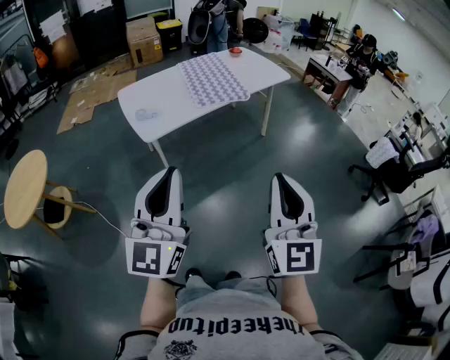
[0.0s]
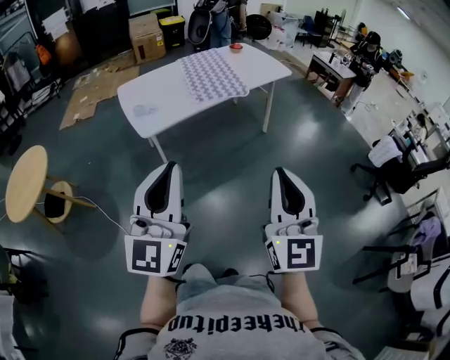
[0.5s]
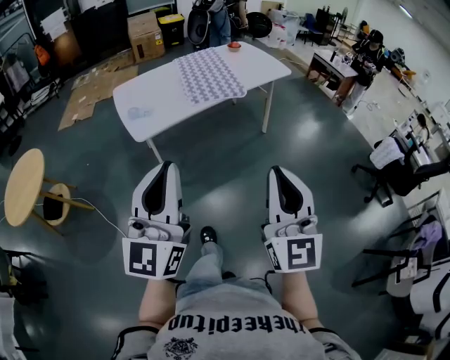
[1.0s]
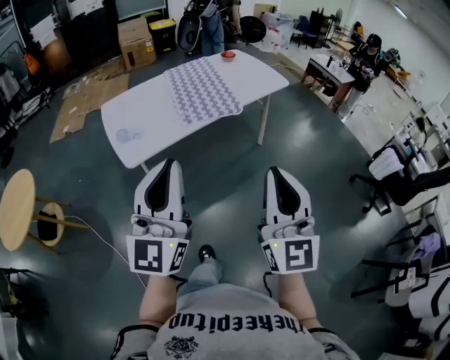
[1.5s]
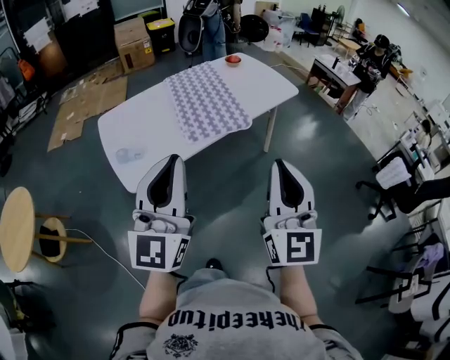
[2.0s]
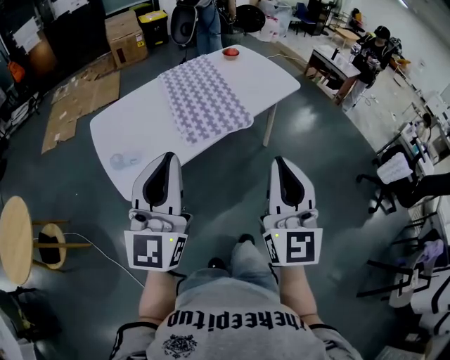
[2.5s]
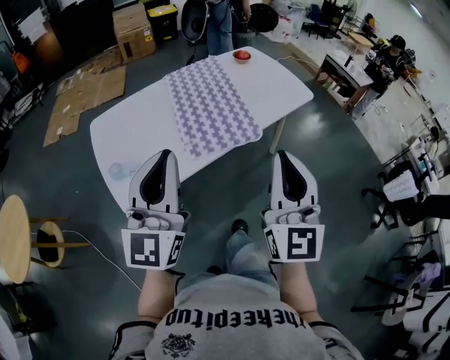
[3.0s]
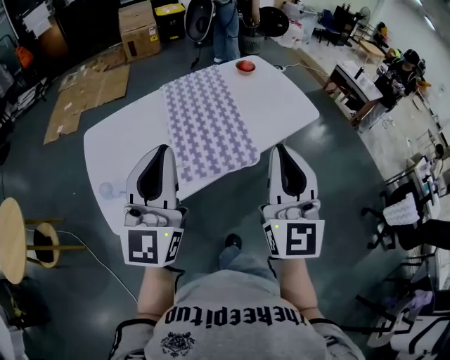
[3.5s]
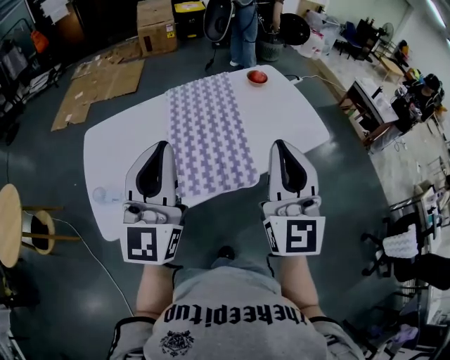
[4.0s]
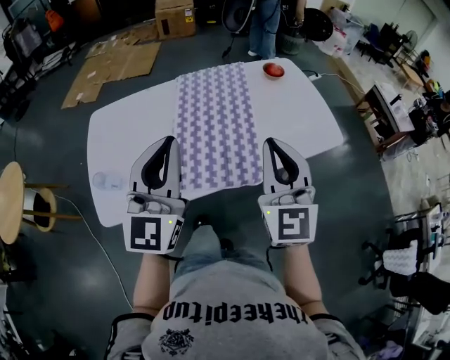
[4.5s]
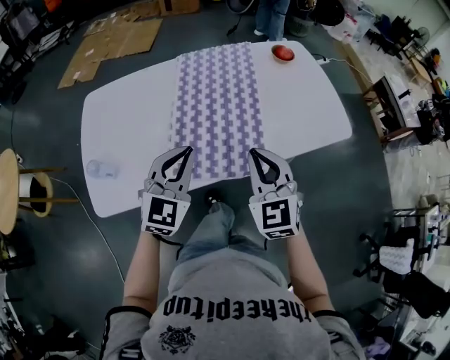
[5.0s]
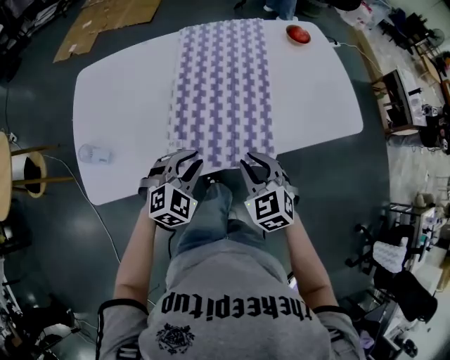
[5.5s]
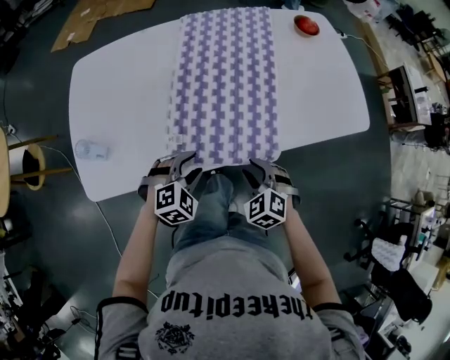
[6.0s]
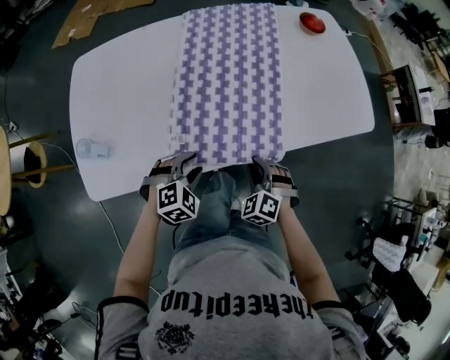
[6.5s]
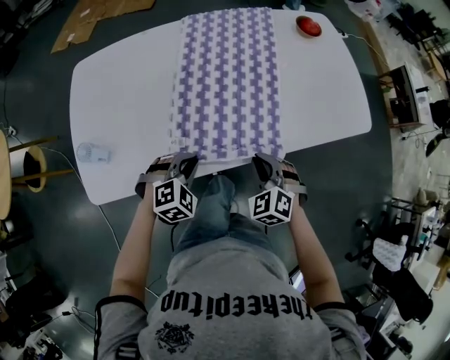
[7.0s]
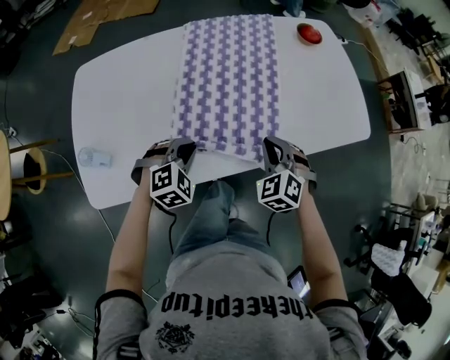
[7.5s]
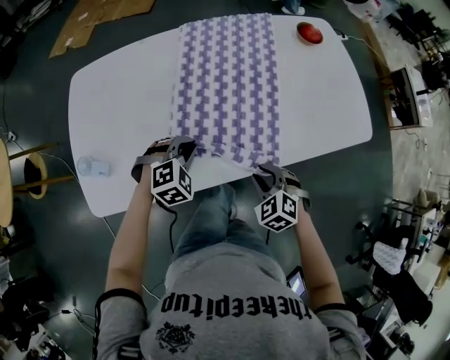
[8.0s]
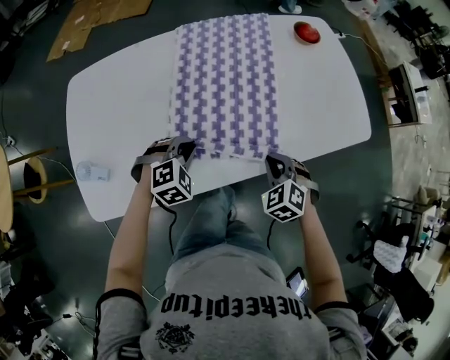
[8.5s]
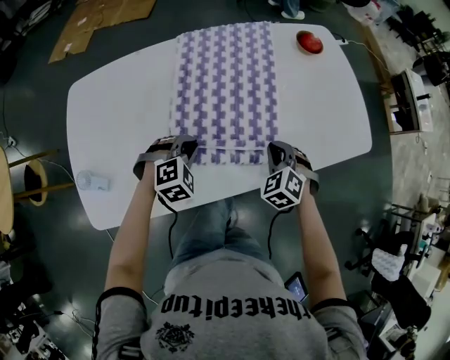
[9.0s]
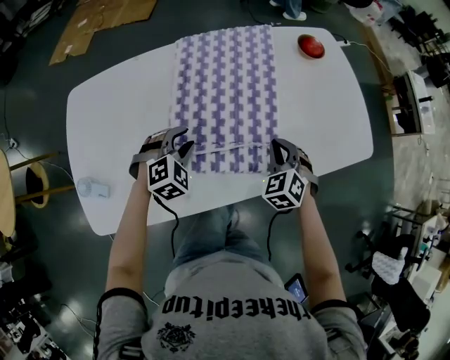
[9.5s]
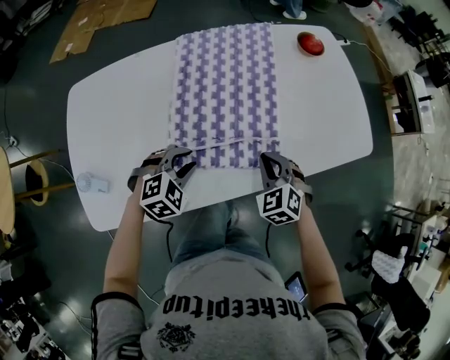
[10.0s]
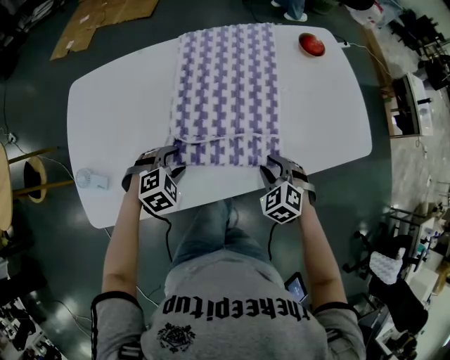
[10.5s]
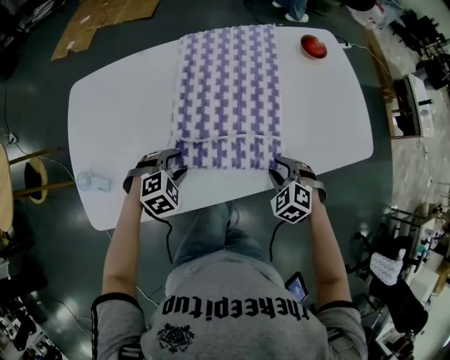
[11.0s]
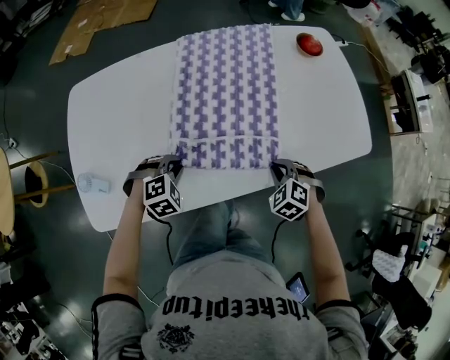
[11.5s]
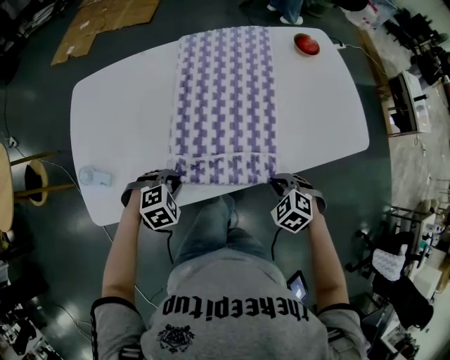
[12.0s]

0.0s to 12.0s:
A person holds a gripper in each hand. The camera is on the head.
0.0s to 2.0s: The two grippers go approximately 35 cm forward.
2.0s to 4.0s: The grippers both shift forward by roughly 40 cm.
4.0s to 6.0s: The two grippers go roughly 40 cm downward. The right gripper tips its fingers downward by approximately 70 degrees, and opens its fingers, while the left gripper points its fingers some 70 degrees further downward, and opens up.
6.0s to 8.0s: The right gripper closes, then opens again. Meanwhile the left gripper shifts about 10 cm forward, and closes up.
8.0s to 10.0s: The right gripper heads forward, covering roughly 10 cm, and closes its fingers, while the left gripper reaches some 10 cm forward, then returns, and opens its fingers.
10.0s to 12.0s: The left gripper ends up roughly 5 cm from where it was, and closes its fingers, while the right gripper ends up approximately 5 cm from where it was, swivels some 20 degrees, and opens, then closes again.

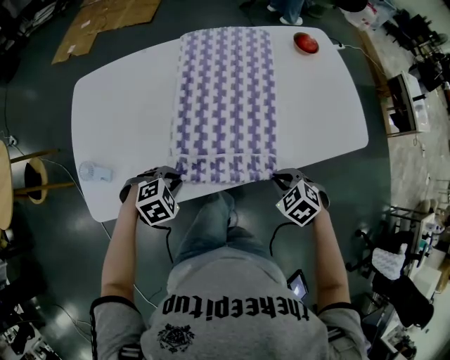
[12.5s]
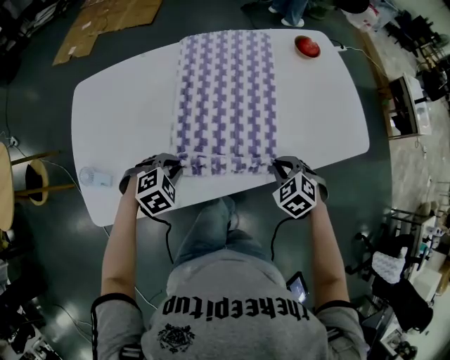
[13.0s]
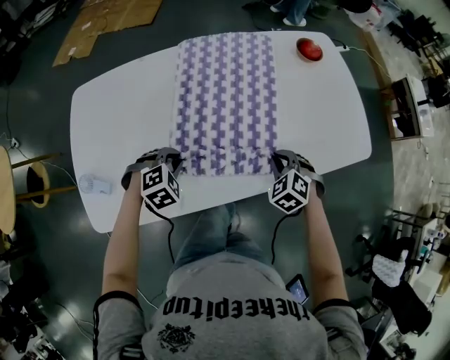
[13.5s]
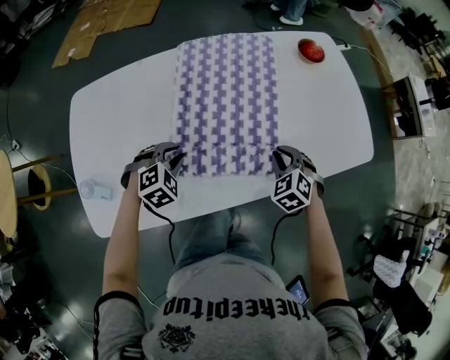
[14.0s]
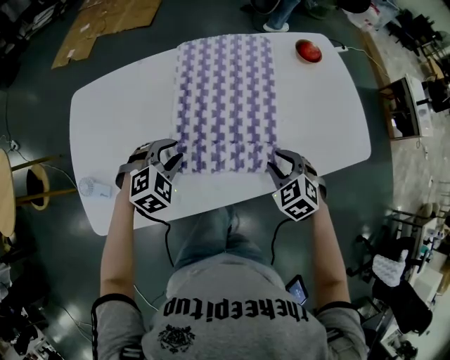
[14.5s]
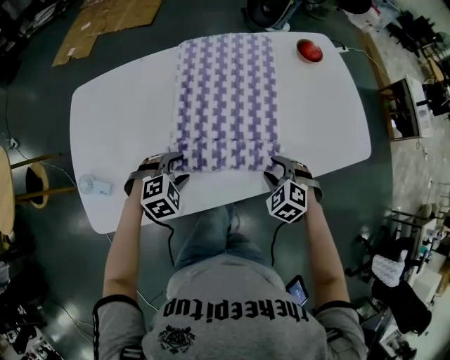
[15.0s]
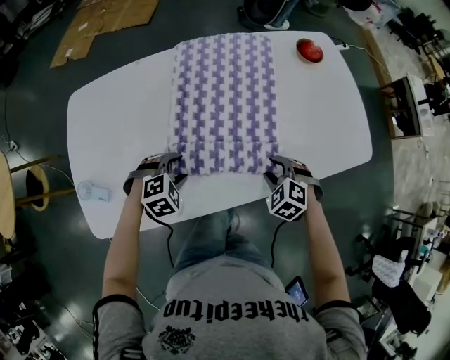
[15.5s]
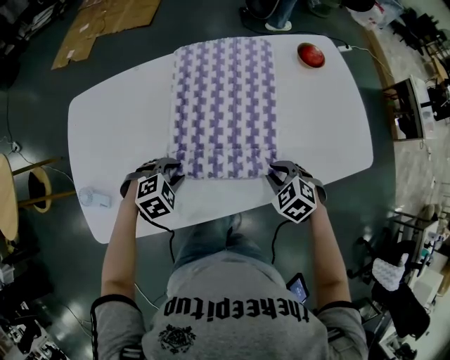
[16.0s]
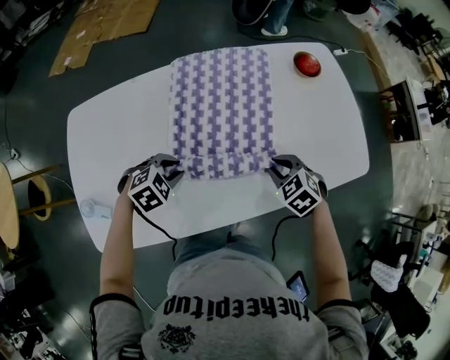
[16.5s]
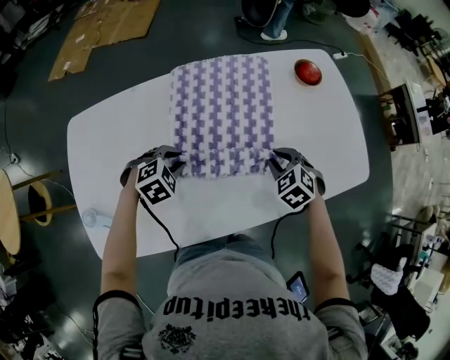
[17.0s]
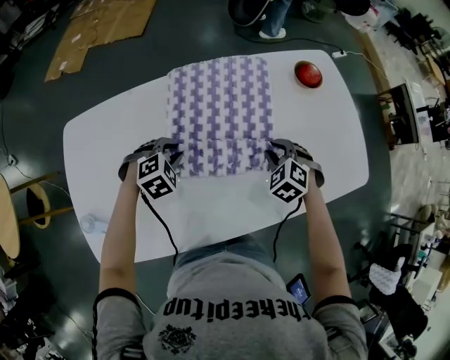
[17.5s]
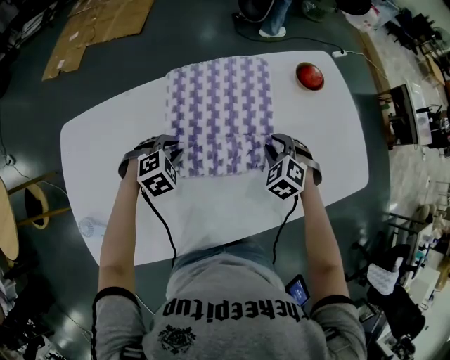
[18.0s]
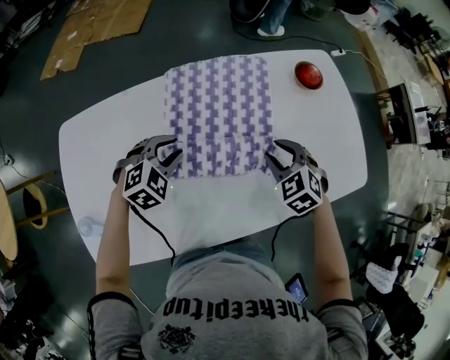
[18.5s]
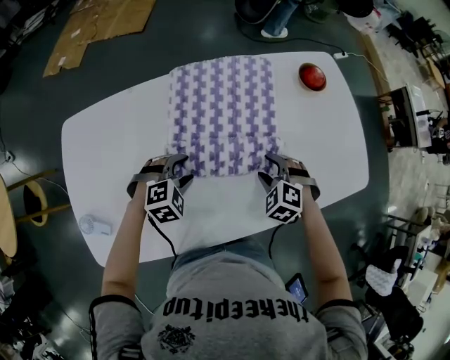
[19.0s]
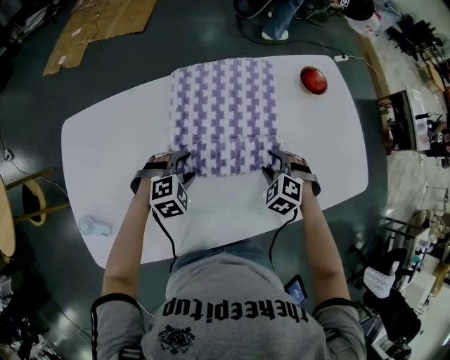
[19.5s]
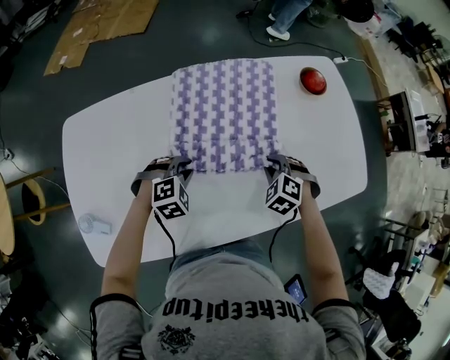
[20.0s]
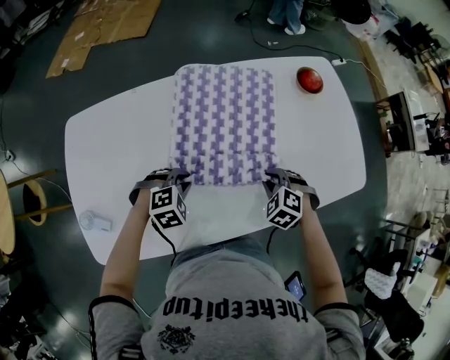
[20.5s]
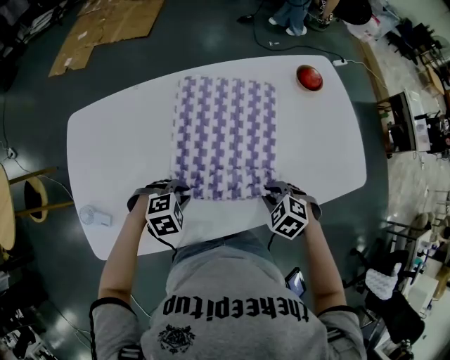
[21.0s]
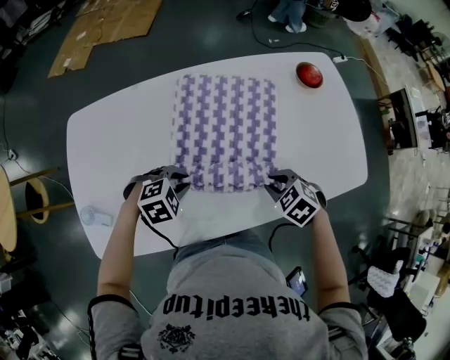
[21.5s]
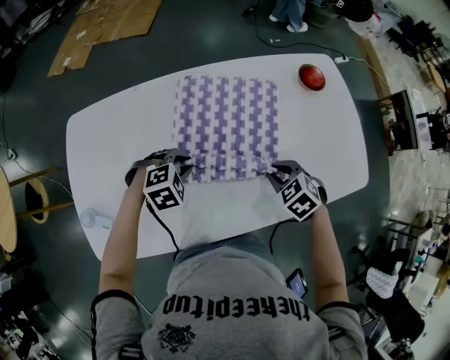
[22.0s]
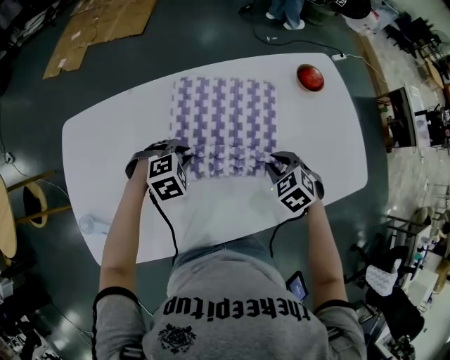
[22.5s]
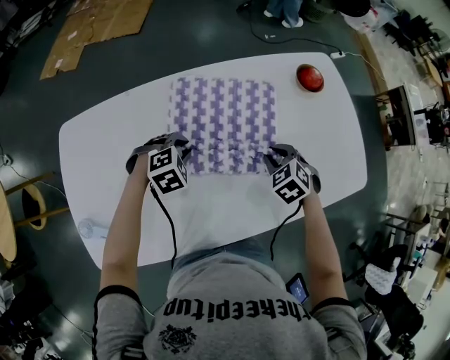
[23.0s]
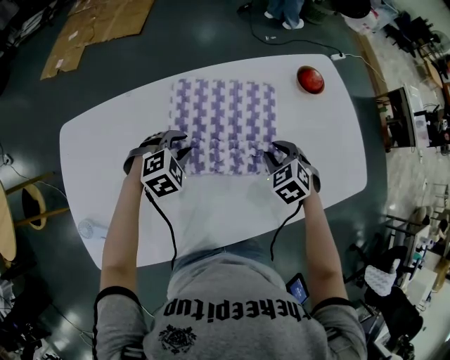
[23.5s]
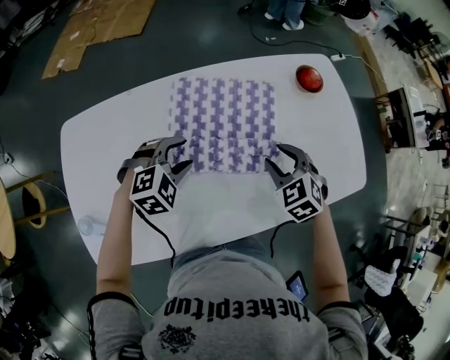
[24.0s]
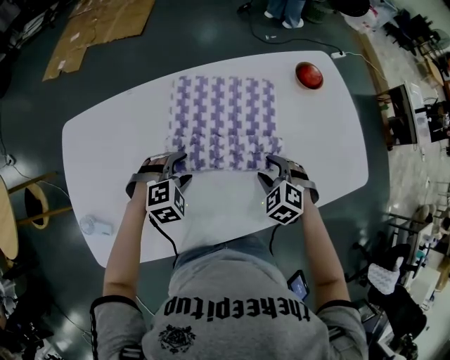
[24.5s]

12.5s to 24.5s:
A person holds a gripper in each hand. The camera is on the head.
12.5s to 14.5s: Both grippers travel together forward, approximately 15 cm. The right gripper opens its fingers. The left gripper changes its angle by roughly 20 degrees, and opens its fingers.
14.5s to 16.5s: The right gripper ends up about 5 cm from where it was. Meanwhile the left gripper opens, then closes again.
16.5s to 18.5s: Both grippers travel together forward, about 10 cm.
18.5s to 20.5s: The two grippers go approximately 10 cm backward and downward. The left gripper opens and closes again.
20.5s to 22.5s: Both grippers travel together forward, some 5 cm.
22.5s to 24.5s: The left gripper opens; the right gripper opens.

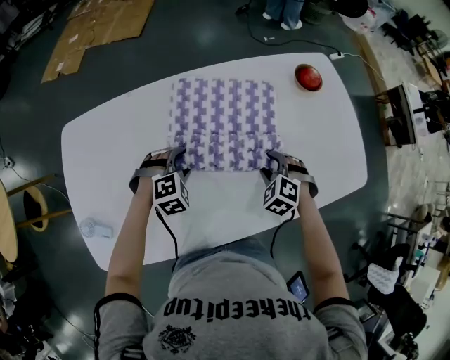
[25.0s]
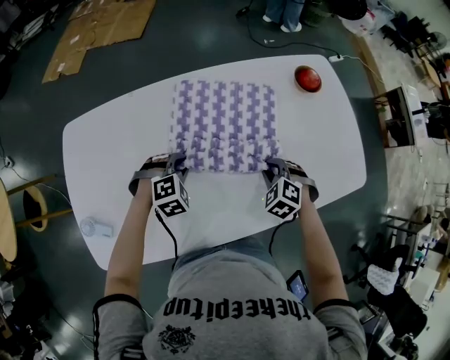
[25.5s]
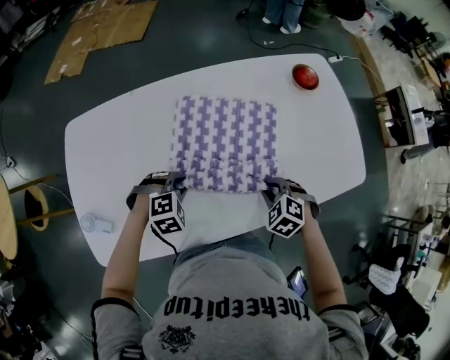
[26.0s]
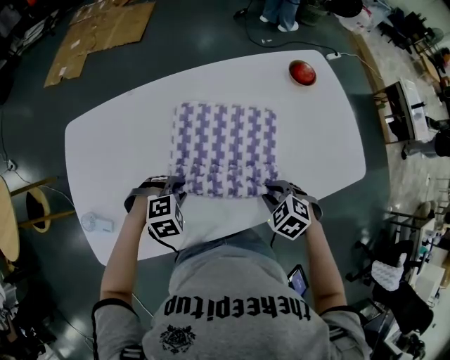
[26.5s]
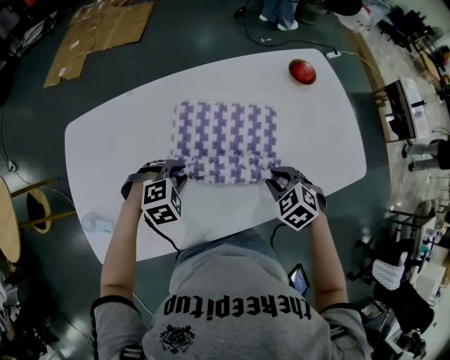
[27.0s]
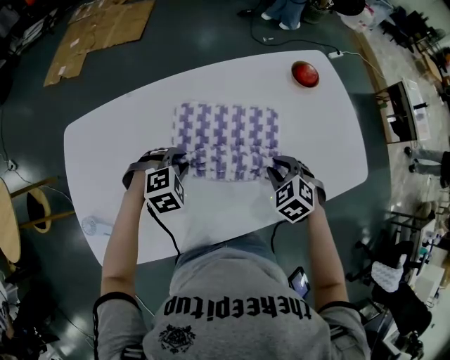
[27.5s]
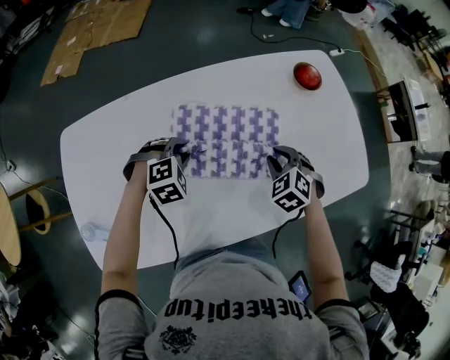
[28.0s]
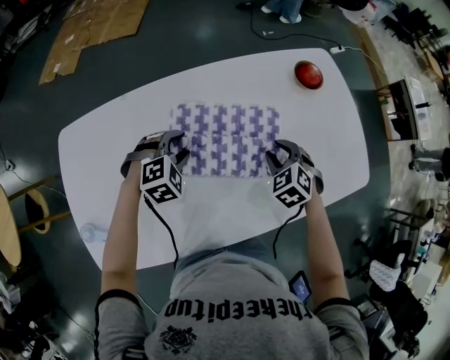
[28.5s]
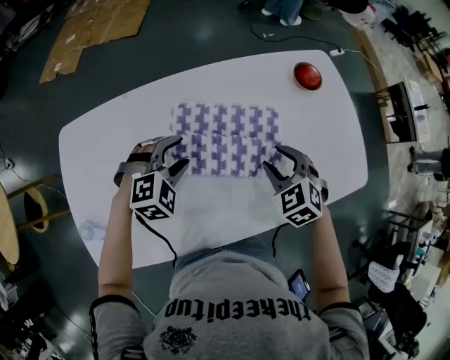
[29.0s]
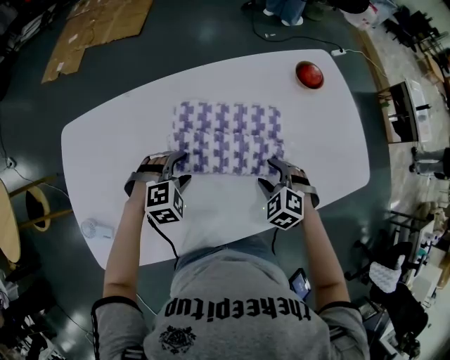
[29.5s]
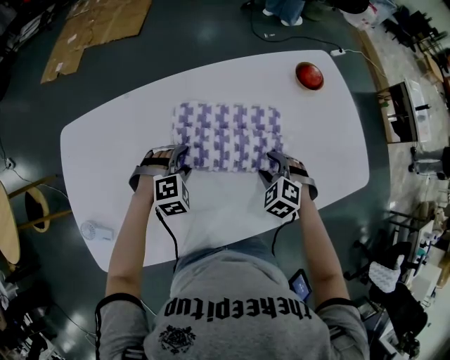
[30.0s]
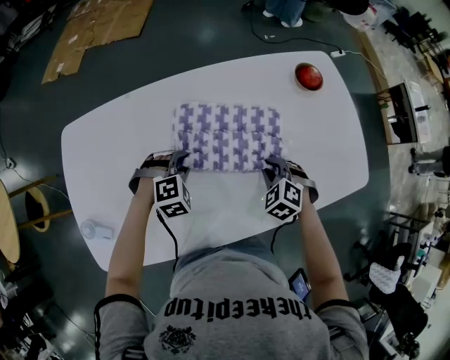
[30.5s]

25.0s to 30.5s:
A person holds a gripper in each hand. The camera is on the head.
25.0s to 27.0s: The right gripper heads backward and upward, covering some 10 cm, and closes; the left gripper heads backward, covering about 5 cm, and closes its fingers.
27.0s to 28.5s: The grippers both shift forward by about 10 cm. The left gripper opens up.
28.5s to 30.5s: The two grippers go approximately 5 cm backward. The right gripper moves some 5 cm upward and comes back, and opens, then closes once more.
